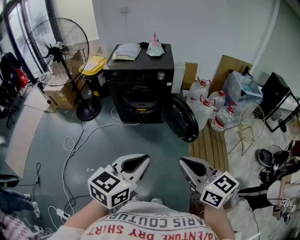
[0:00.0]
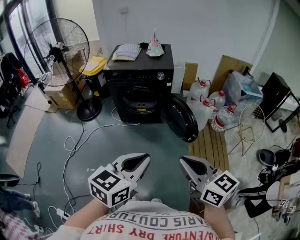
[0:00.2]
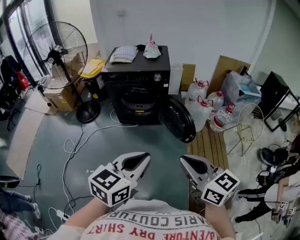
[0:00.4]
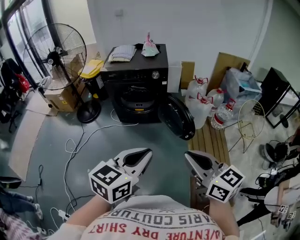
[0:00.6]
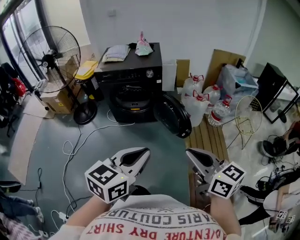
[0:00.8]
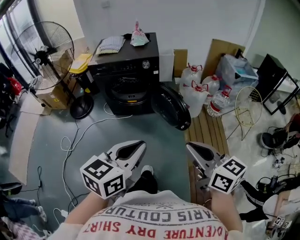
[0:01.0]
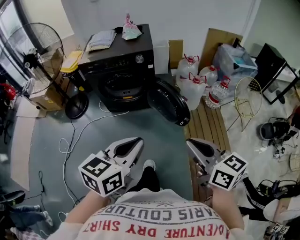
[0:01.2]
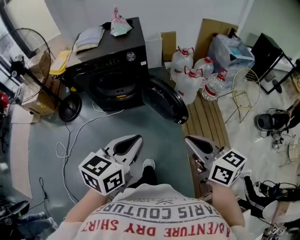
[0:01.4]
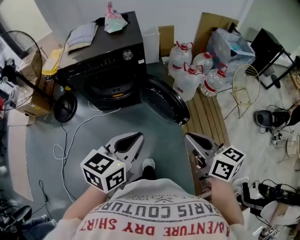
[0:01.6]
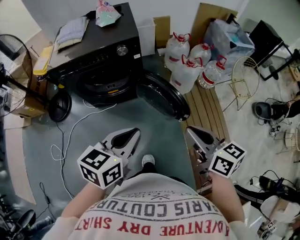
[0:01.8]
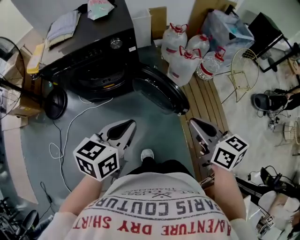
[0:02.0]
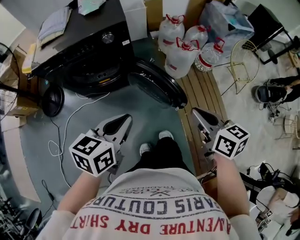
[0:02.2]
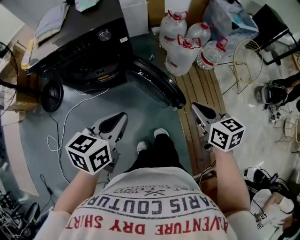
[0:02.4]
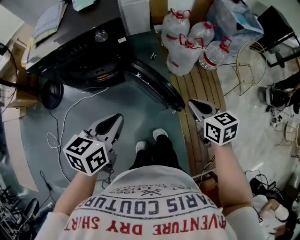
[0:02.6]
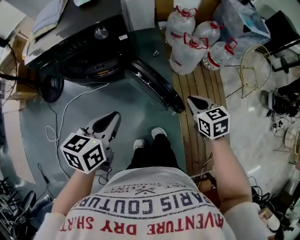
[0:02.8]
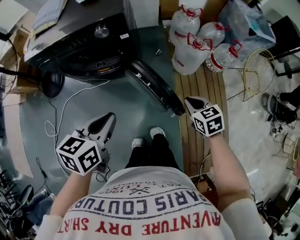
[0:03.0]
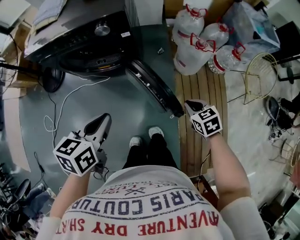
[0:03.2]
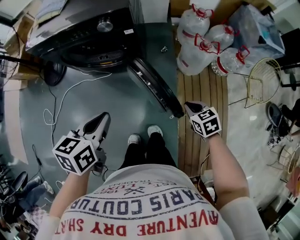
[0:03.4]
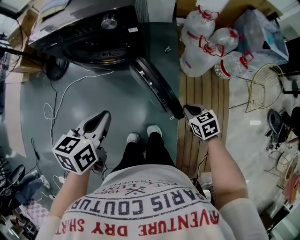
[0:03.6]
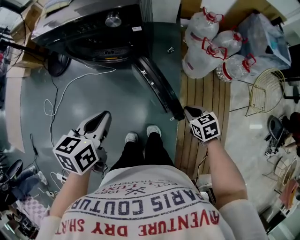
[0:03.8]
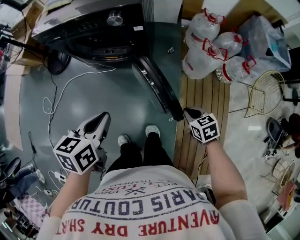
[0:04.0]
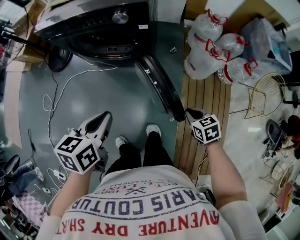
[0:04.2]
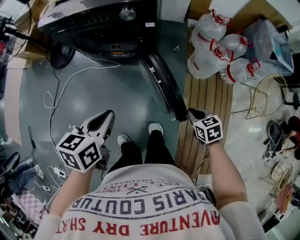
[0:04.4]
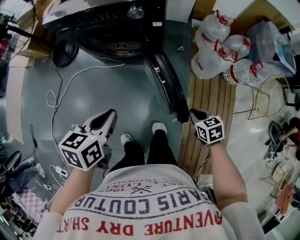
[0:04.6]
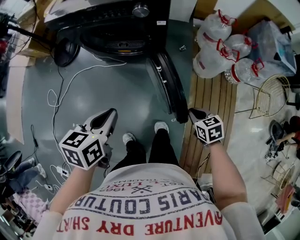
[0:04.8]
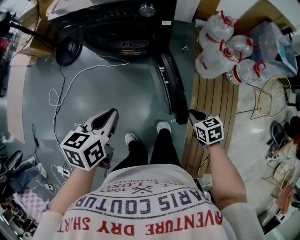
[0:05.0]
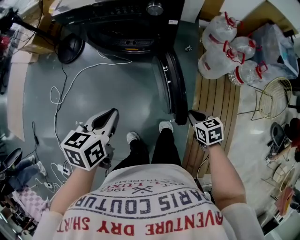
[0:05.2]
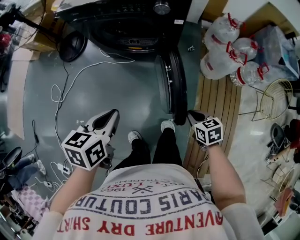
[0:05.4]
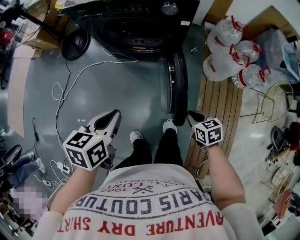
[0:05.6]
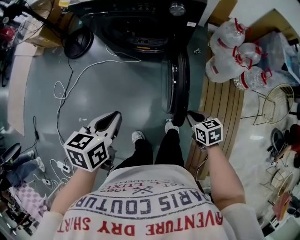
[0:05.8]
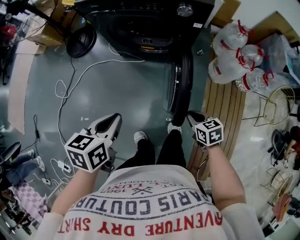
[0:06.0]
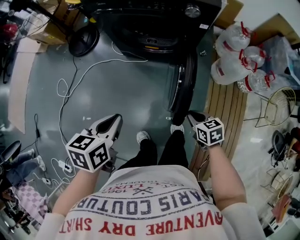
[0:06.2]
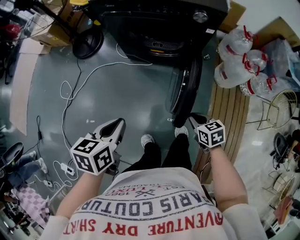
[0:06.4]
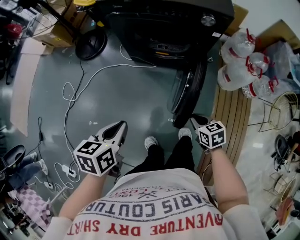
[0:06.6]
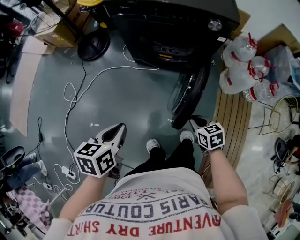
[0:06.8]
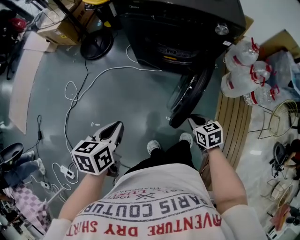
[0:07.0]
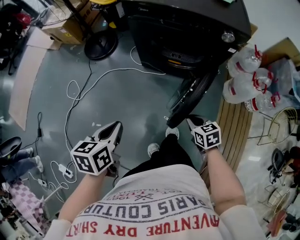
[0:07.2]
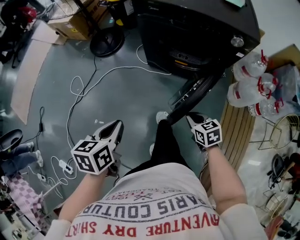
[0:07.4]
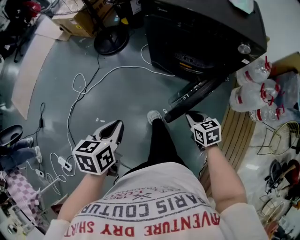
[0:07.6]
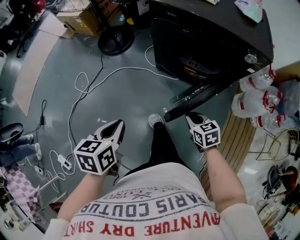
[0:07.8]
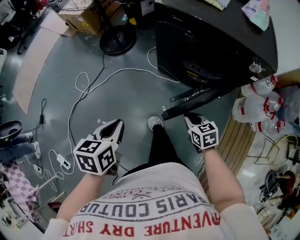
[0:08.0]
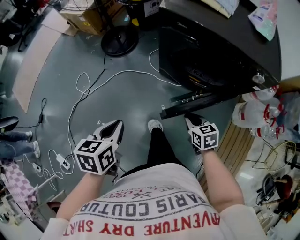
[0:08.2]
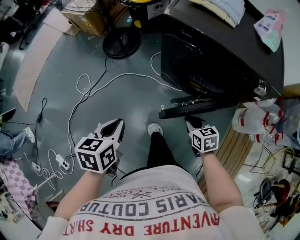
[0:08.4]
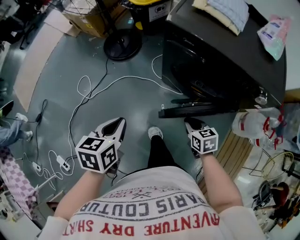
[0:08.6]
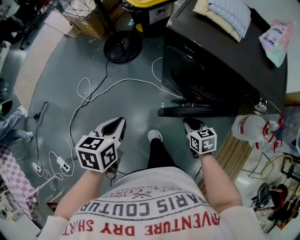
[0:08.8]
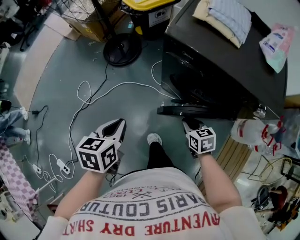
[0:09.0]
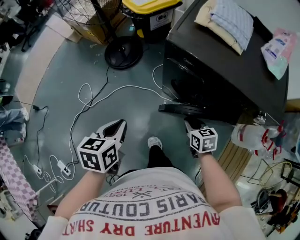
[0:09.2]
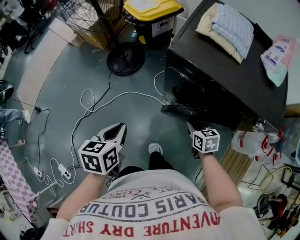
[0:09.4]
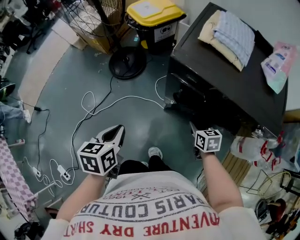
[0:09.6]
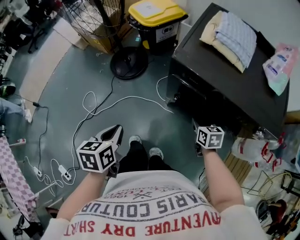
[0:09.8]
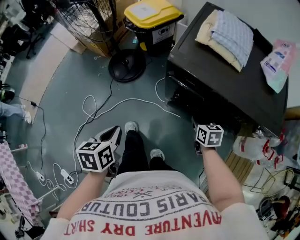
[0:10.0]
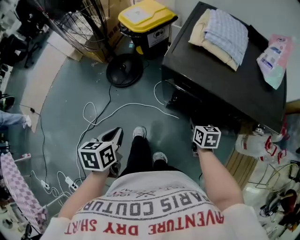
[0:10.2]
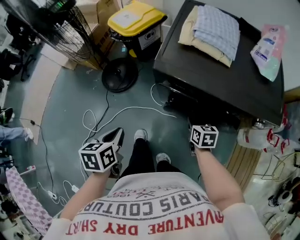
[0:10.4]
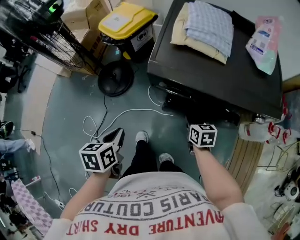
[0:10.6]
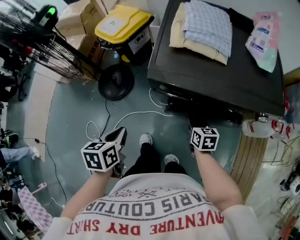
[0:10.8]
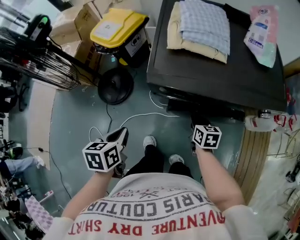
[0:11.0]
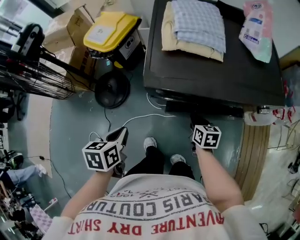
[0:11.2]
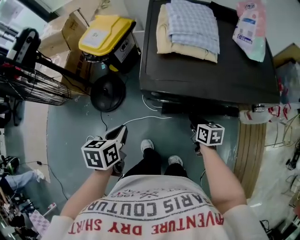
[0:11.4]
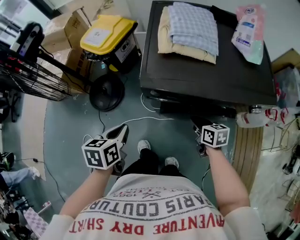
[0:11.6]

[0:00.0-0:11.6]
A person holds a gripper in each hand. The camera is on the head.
0:00.0 to 0:01.4: The left gripper shifts about 15 cm forward, downward and to the right, while the right gripper shifts about 20 cm forward, to the right and downward.
0:01.4 to 0:02.8: The two grippers go about 30 cm forward and downward. The right gripper rotates roughly 30 degrees.
0:02.8 to 0:04.4: The right gripper heads downward, covering some 10 cm, and rotates approximately 20 degrees. The left gripper shifts by approximately 5 cm, and changes its angle by some 20 degrees.
0:04.4 to 0:05.8: Both grippers travel together to the left, roughly 15 cm.
0:05.8 to 0:07.2: Both grippers travel together to the left, about 20 cm.
0:07.2 to 0:08.8: Both grippers travel together forward, some 20 cm.
0:08.8 to 0:10.2: Both grippers move forward, approximately 15 cm.
0:10.2 to 0:11.6: The left gripper heads forward, covering roughly 15 cm, and swivels about 20 degrees.

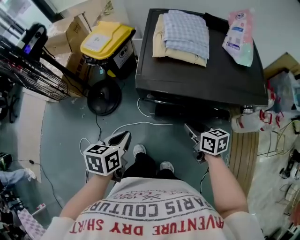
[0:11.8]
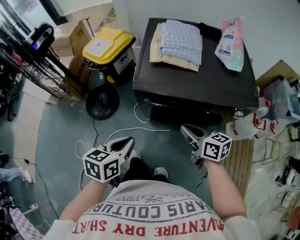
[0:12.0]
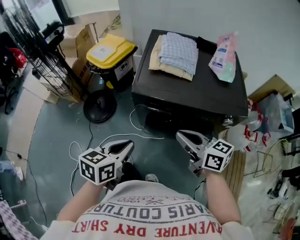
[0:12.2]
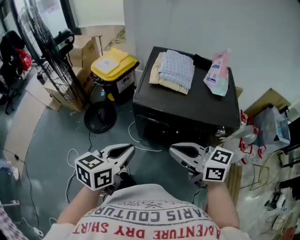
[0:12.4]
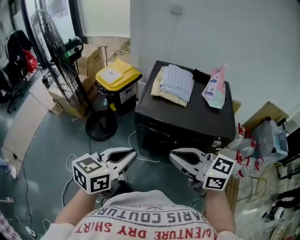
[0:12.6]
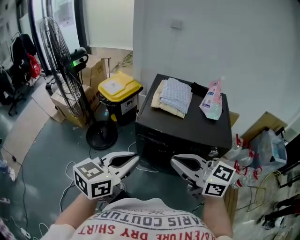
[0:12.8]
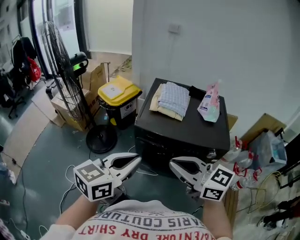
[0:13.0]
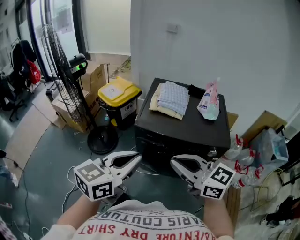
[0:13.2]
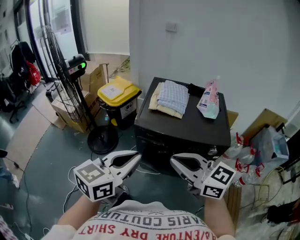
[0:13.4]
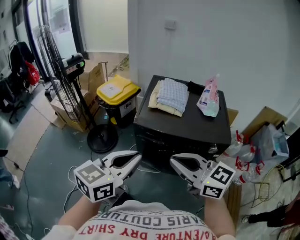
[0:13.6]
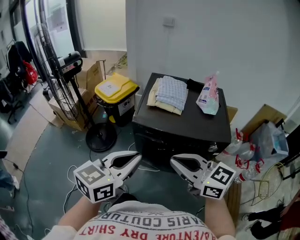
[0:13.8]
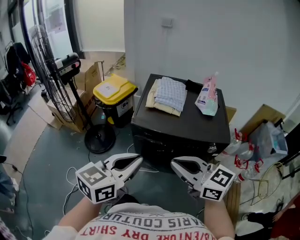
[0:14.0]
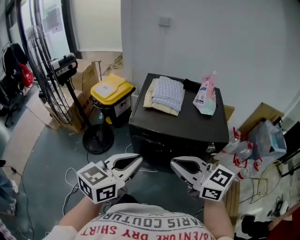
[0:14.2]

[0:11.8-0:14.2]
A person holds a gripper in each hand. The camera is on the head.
0:11.8 to 0:13.0: The left gripper goes roughly 30 cm upward and backward, and tilts its fingers roughly 30 degrees upward. Meanwhile the right gripper goes some 35 cm upward, and changes its angle by approximately 50 degrees.
0:13.0 to 0:14.2: The grippers move only a little.

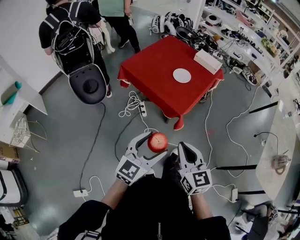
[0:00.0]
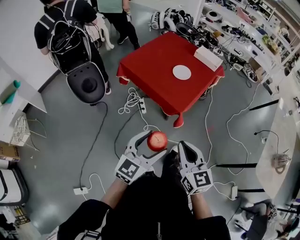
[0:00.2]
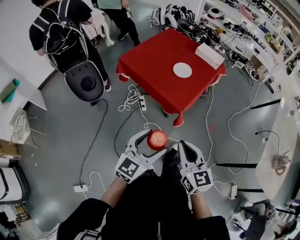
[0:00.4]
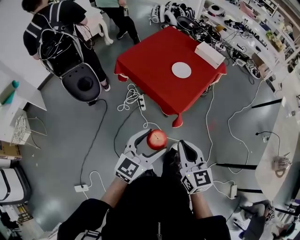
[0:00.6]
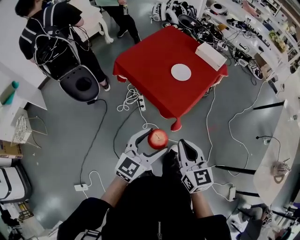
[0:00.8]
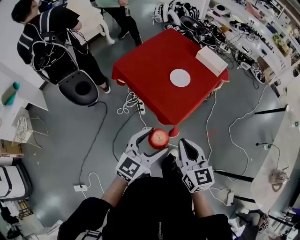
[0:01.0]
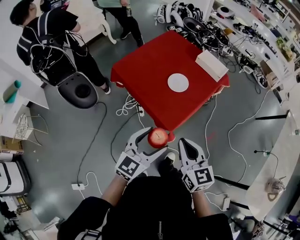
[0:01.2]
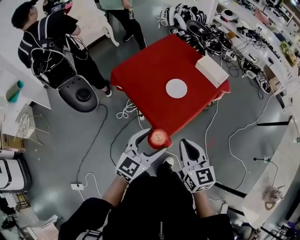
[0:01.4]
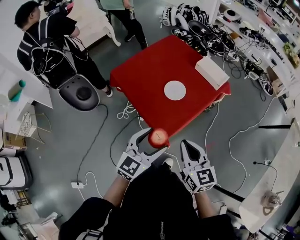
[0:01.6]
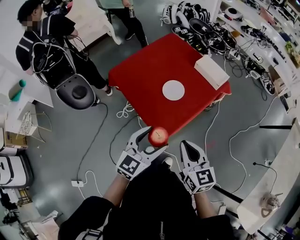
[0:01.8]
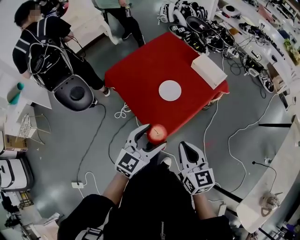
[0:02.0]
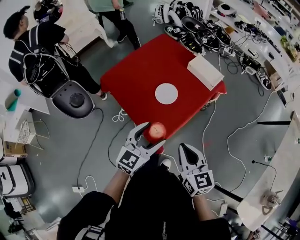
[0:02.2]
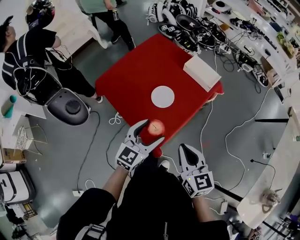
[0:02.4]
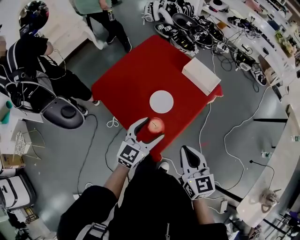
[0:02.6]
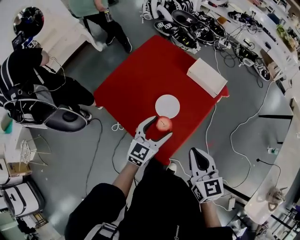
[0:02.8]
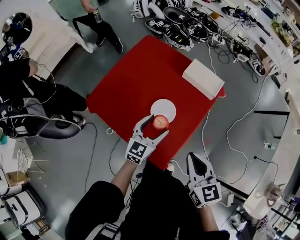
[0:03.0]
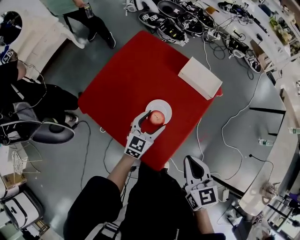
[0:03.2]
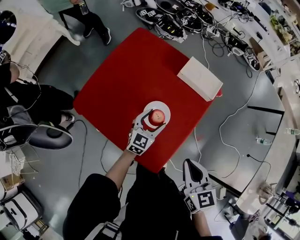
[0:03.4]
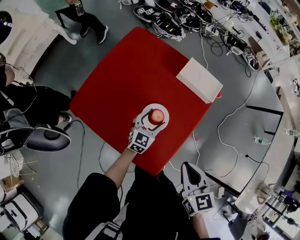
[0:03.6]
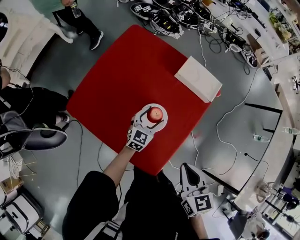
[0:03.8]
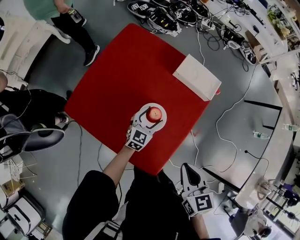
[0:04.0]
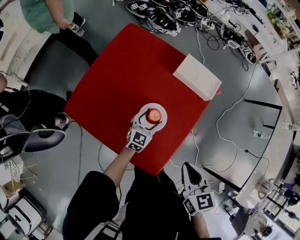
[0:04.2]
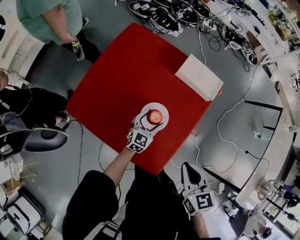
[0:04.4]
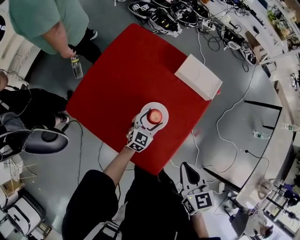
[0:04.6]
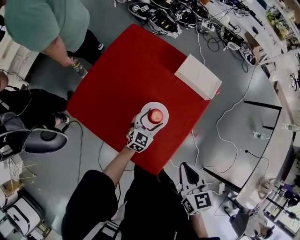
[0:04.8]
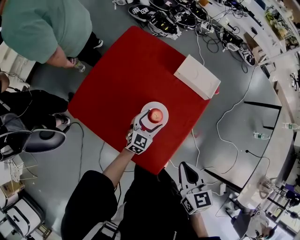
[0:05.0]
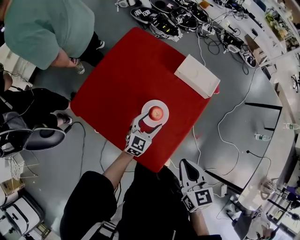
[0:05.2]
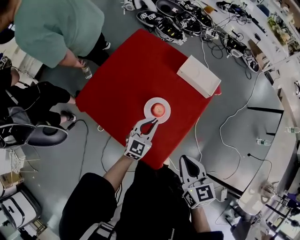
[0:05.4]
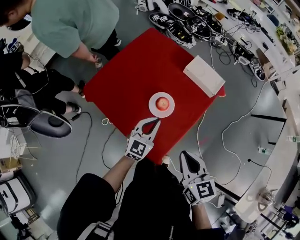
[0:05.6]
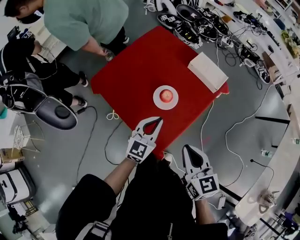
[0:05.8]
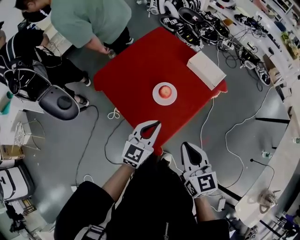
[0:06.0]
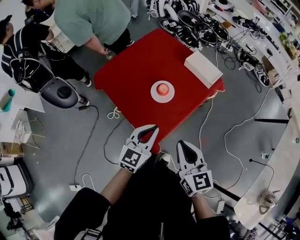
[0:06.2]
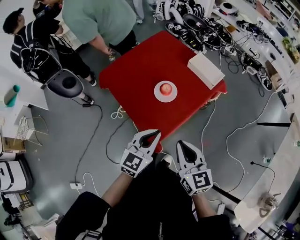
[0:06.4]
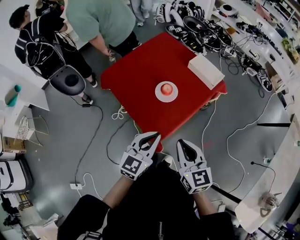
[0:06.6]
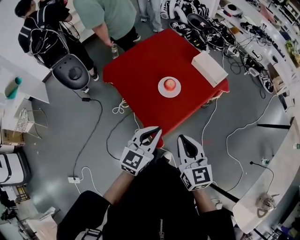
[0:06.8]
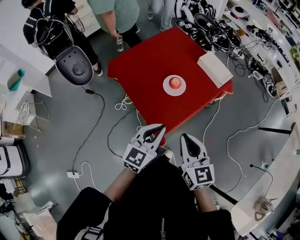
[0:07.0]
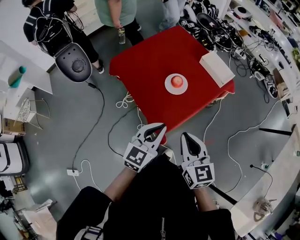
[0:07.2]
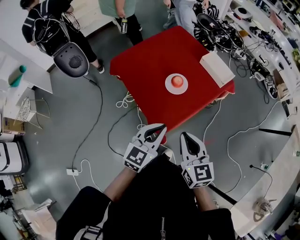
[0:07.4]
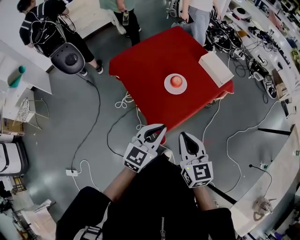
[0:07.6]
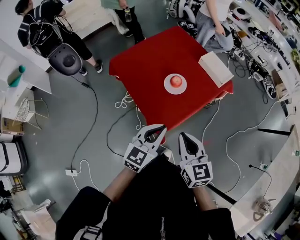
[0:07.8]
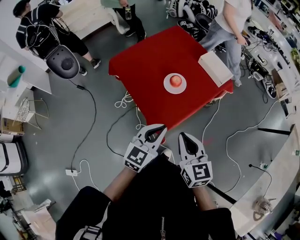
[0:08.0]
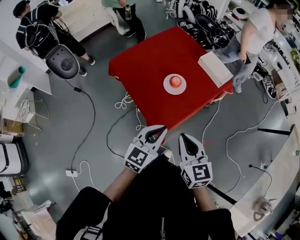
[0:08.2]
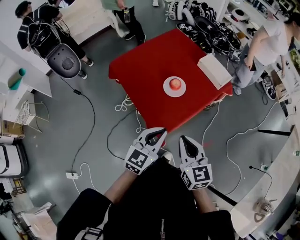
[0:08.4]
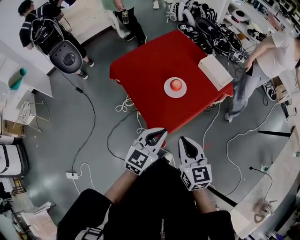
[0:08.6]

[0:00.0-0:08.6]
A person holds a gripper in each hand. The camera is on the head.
0:00.0 to 0:01.4: Both grippers move forward and to the right, some 25 cm.
0:01.4 to 0:02.8: The right gripper shifts about 15 cm forward. The left gripper is displaced forward by about 25 cm.
0:02.8 to 0:04.4: The right gripper travels forward and downward by roughly 10 cm; the left gripper heads downward and forward, covering some 25 cm.
0:04.4 to 0:05.8: The right gripper moves backward, roughly 10 cm, and turns by approximately 20 degrees. Meanwhile the left gripper goes some 25 cm upward and backward, and closes its fingers.
0:05.8 to 0:07.2: The left gripper travels backward by approximately 15 cm, while the right gripper travels backward by some 10 cm.
0:07.2 to 0:08.6: The grippers move only a little.

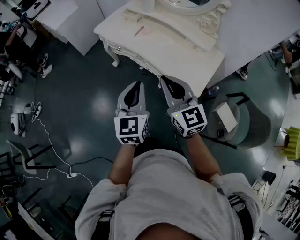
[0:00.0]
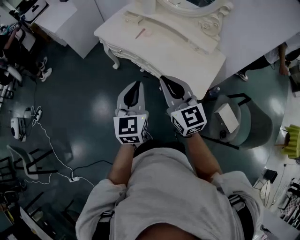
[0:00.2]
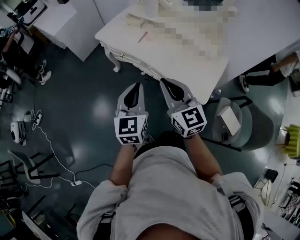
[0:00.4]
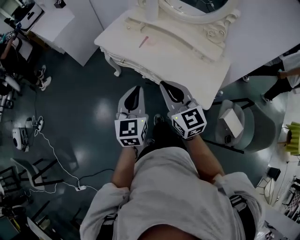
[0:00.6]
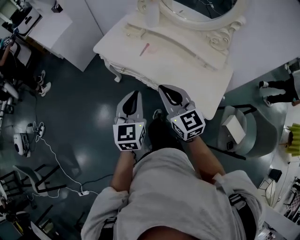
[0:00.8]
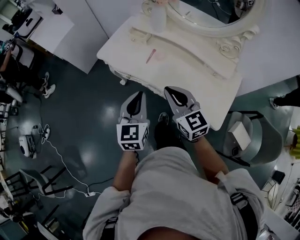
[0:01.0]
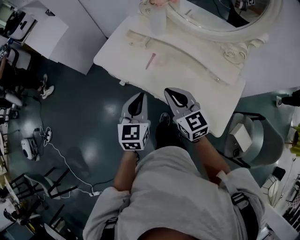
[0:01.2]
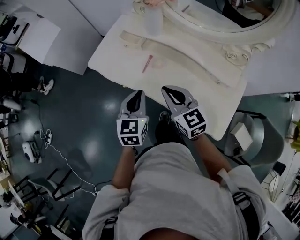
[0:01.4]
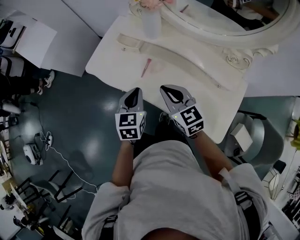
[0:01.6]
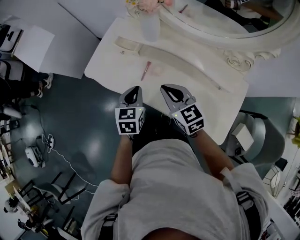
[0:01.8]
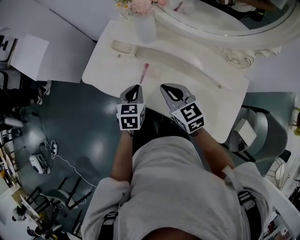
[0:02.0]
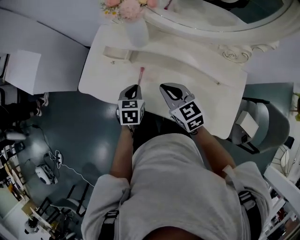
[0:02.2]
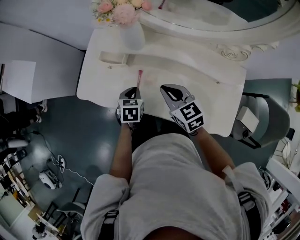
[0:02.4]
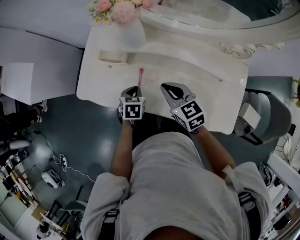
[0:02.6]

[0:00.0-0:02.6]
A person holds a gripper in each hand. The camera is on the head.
0:00.0 to 0:01.2: Both grippers travel together forward, about 35 cm.
0:01.2 to 0:02.6: The two grippers go some 30 cm forward and downward. The right gripper turns by roughly 20 degrees; the left gripper tilts its fingers about 40 degrees downward.
